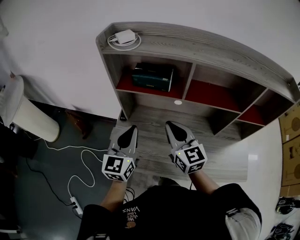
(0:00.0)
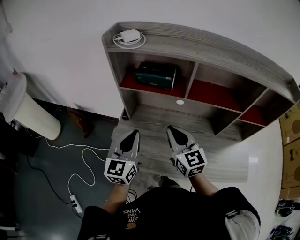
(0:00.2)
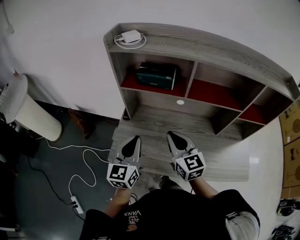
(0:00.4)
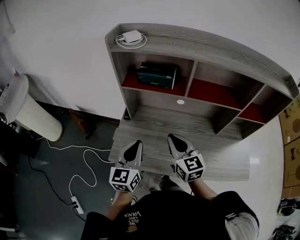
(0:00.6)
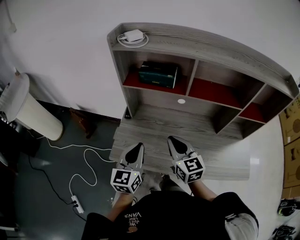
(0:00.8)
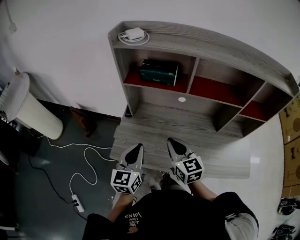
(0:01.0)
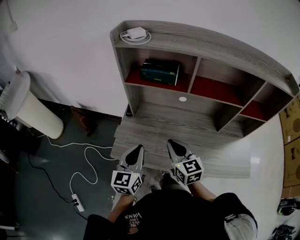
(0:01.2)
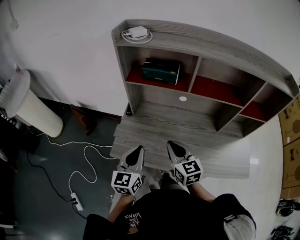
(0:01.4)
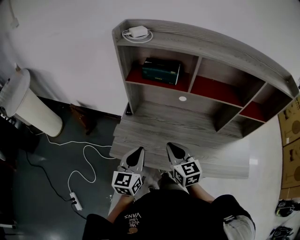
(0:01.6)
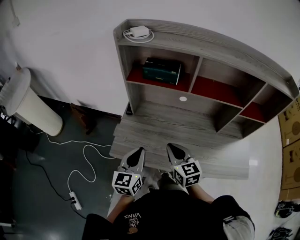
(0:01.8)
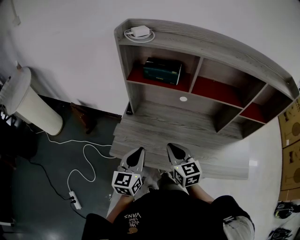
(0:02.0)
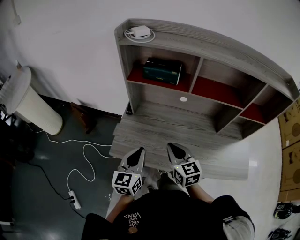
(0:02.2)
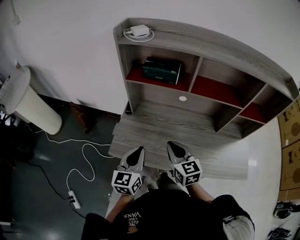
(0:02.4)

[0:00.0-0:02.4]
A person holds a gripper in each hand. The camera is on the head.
0:00.0 to 0:01.2: The two grippers go roughly 10 cm backward and downward.
0:01.2 to 0:02.4: The grippers move only a little.

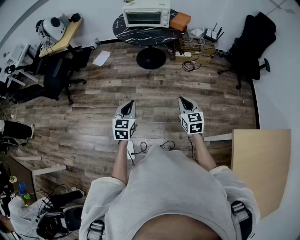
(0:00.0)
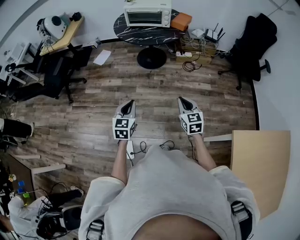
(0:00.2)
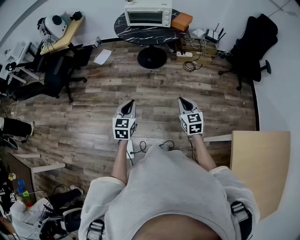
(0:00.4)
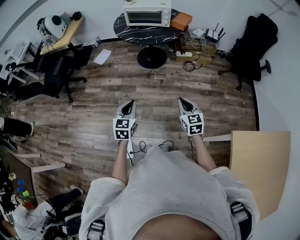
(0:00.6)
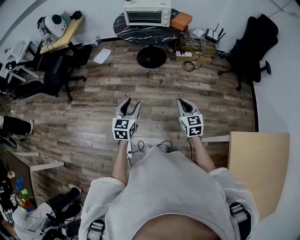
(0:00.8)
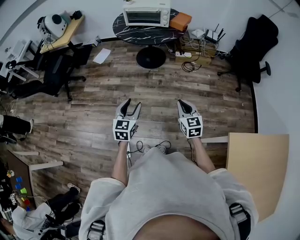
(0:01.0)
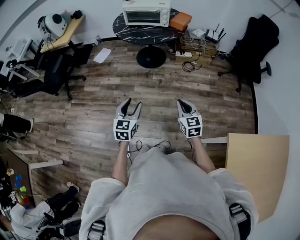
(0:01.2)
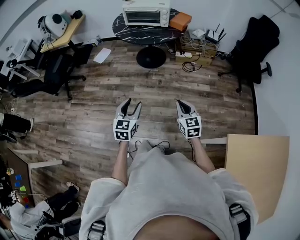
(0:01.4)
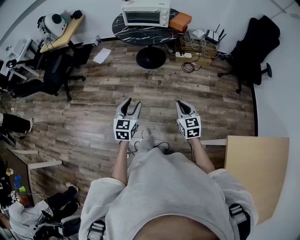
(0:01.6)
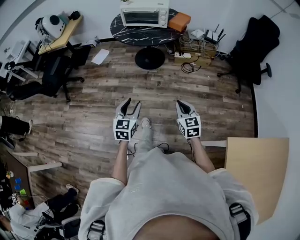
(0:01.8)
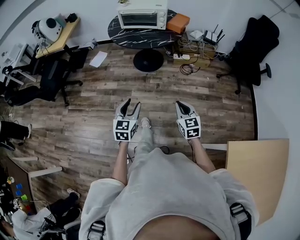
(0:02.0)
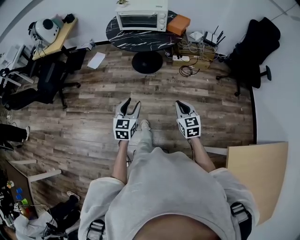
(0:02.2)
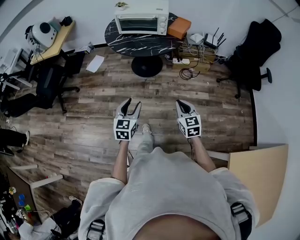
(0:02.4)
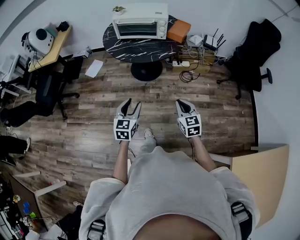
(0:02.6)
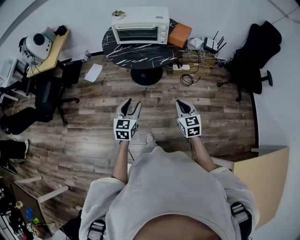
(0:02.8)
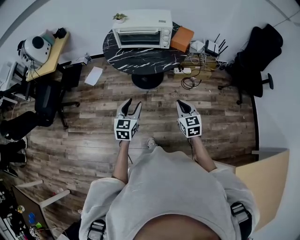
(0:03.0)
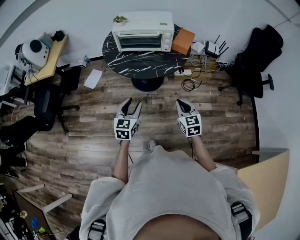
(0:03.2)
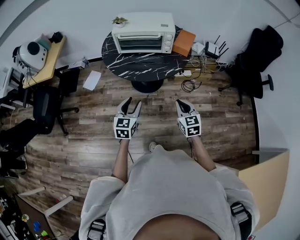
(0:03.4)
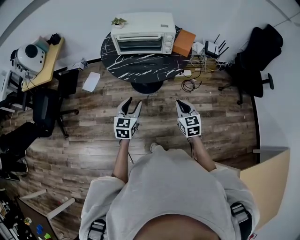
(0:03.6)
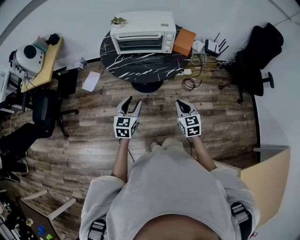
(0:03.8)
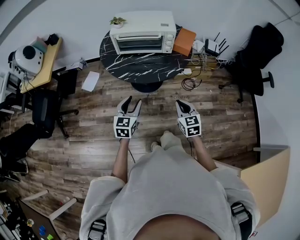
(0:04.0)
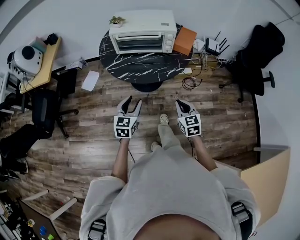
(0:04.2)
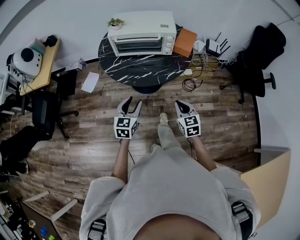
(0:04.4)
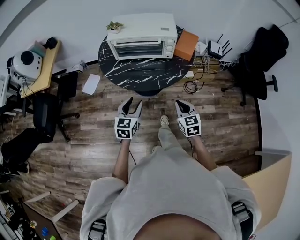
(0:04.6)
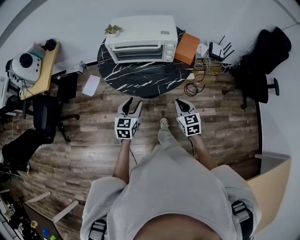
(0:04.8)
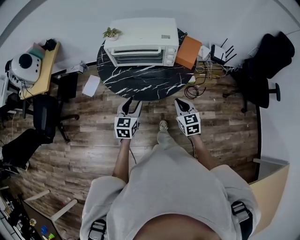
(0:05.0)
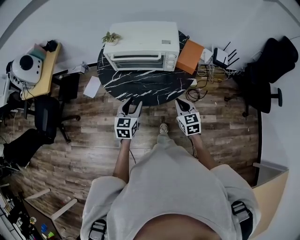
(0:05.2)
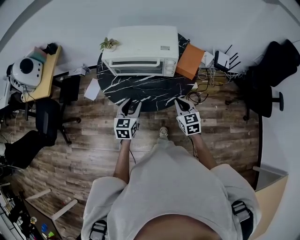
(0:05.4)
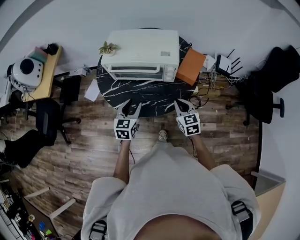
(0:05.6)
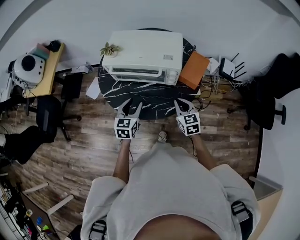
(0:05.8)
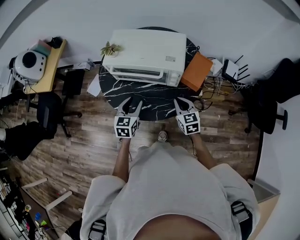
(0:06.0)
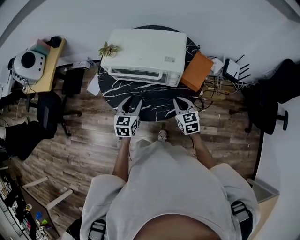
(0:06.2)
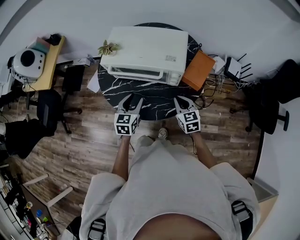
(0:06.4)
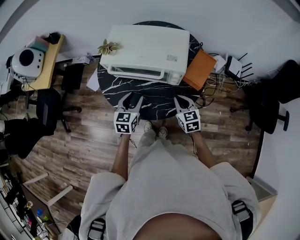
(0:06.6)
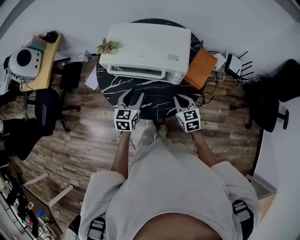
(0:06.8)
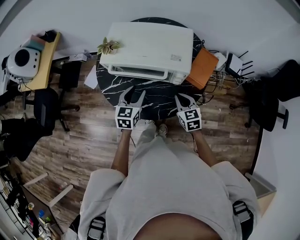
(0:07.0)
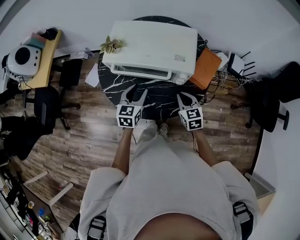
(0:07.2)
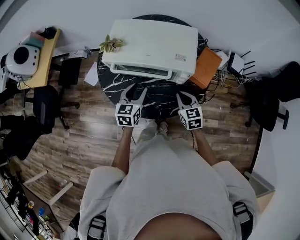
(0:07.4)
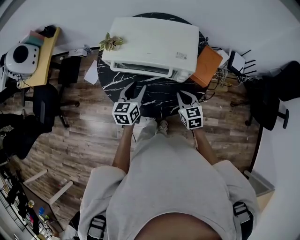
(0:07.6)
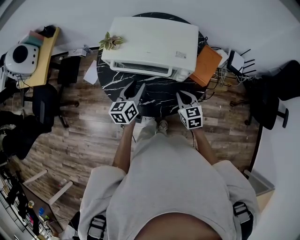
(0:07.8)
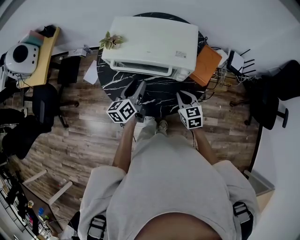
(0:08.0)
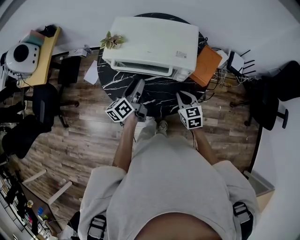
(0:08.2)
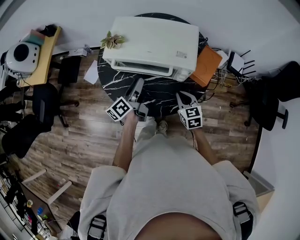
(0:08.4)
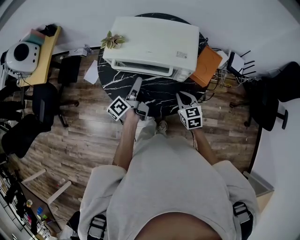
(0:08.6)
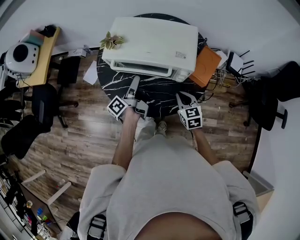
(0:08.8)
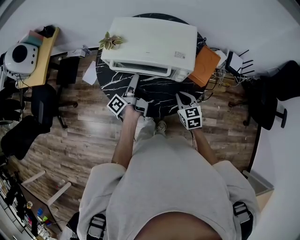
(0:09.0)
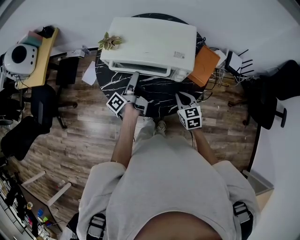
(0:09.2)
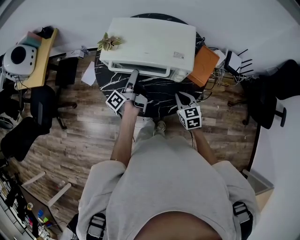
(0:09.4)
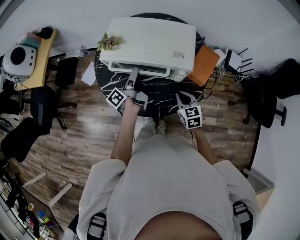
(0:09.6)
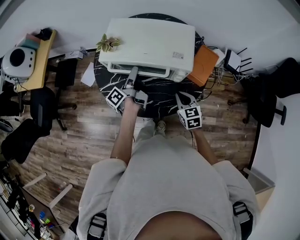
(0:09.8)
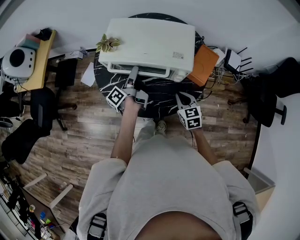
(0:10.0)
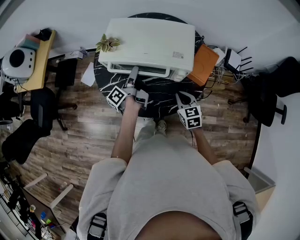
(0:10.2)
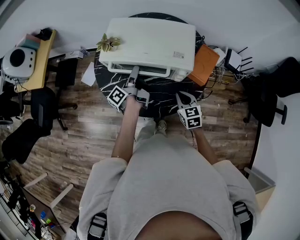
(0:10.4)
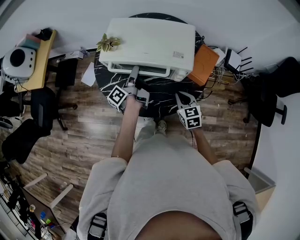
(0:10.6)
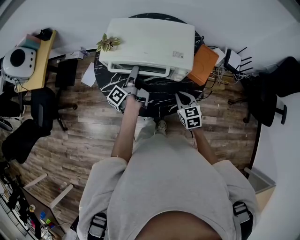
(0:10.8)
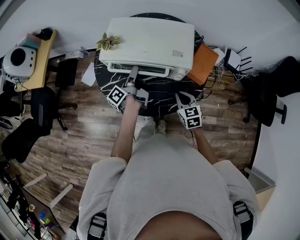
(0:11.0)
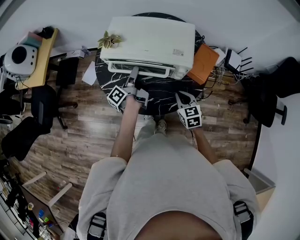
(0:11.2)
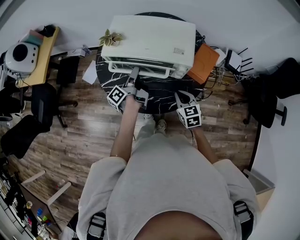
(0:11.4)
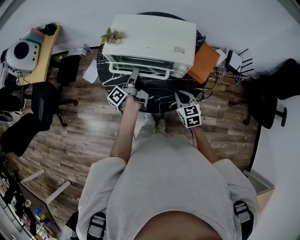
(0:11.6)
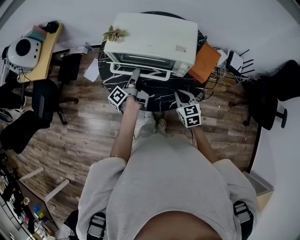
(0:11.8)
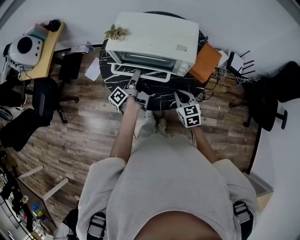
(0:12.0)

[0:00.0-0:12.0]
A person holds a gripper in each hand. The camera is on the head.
0:00.0 to 0:01.6: The left gripper shifts approximately 5 cm to the right, and opens.
0:01.6 to 0:03.0: Both grippers travel together forward, some 30 cm.
0:03.0 to 0:04.4: The two grippers go roughly 10 cm forward.
0:04.4 to 0:06.0: The grippers both shift forward by some 25 cm.
0:06.0 to 0:07.6: The left gripper goes some 5 cm forward; the right gripper ends up roughly 5 cm from where it was.
0:07.6 to 0:09.0: The left gripper rolls counterclockwise, seen from behind, by roughly 70 degrees.
0:09.0 to 0:10.4: The left gripper closes.
0:10.4 to 0:12.0: The left gripper travels backward by some 5 cm.

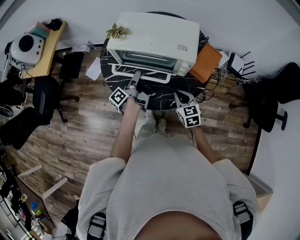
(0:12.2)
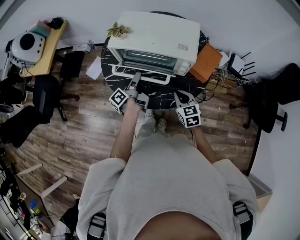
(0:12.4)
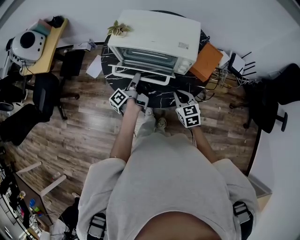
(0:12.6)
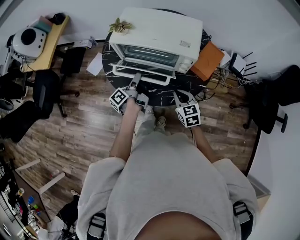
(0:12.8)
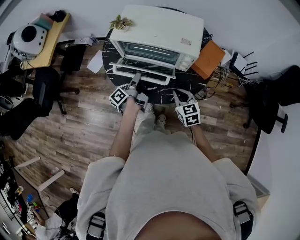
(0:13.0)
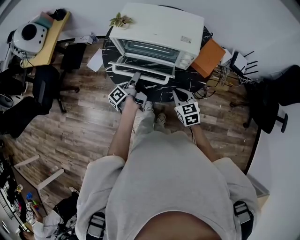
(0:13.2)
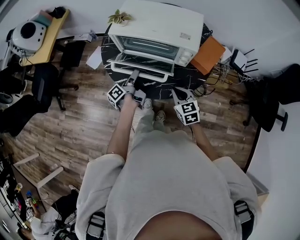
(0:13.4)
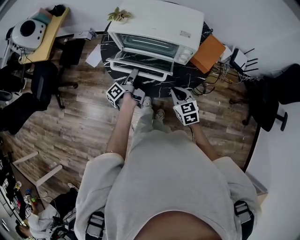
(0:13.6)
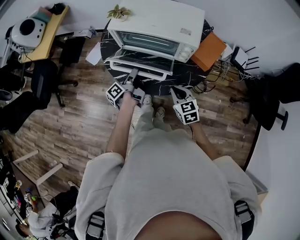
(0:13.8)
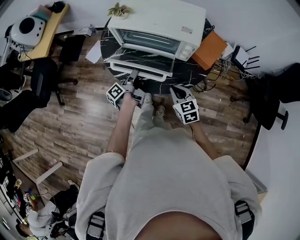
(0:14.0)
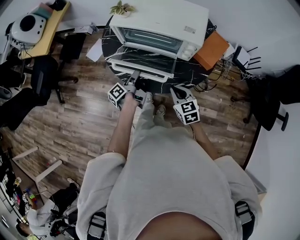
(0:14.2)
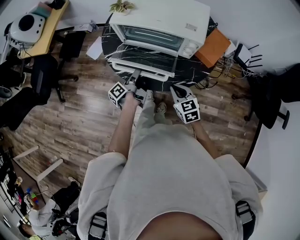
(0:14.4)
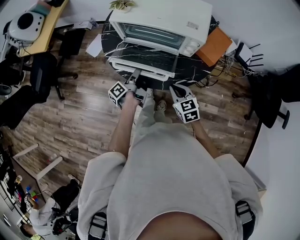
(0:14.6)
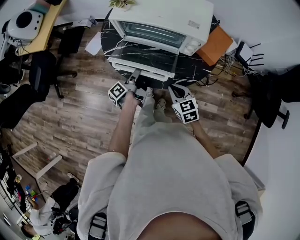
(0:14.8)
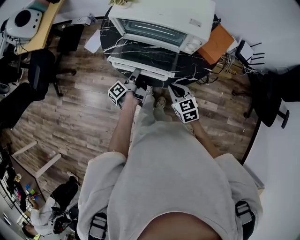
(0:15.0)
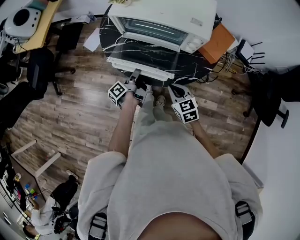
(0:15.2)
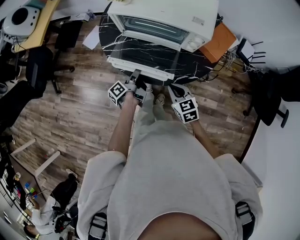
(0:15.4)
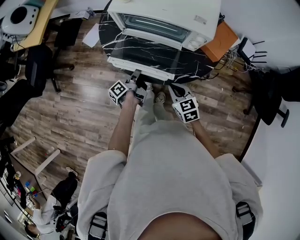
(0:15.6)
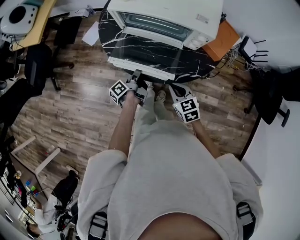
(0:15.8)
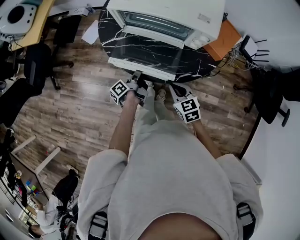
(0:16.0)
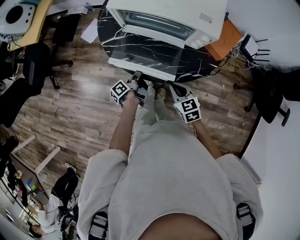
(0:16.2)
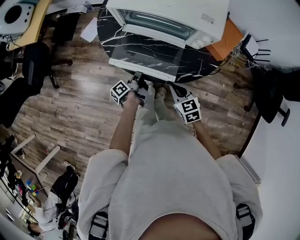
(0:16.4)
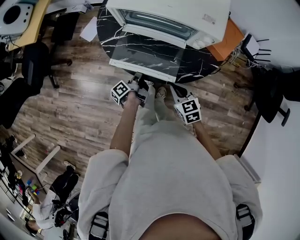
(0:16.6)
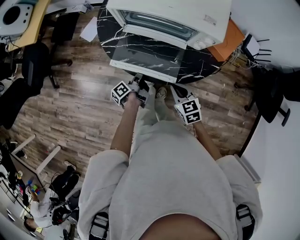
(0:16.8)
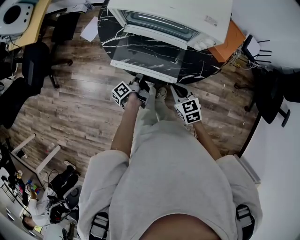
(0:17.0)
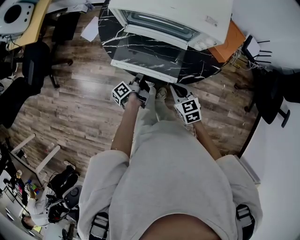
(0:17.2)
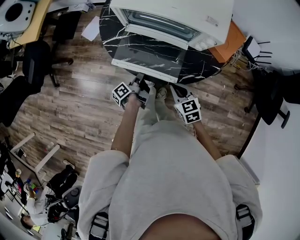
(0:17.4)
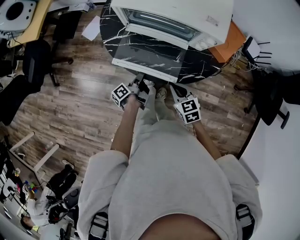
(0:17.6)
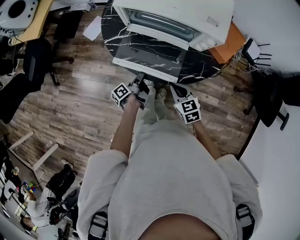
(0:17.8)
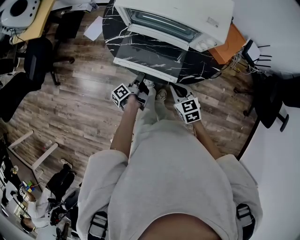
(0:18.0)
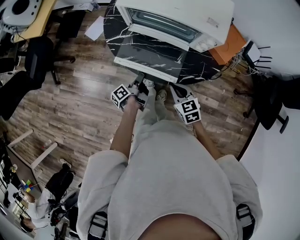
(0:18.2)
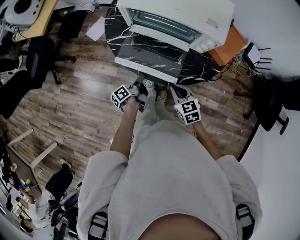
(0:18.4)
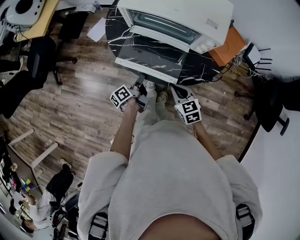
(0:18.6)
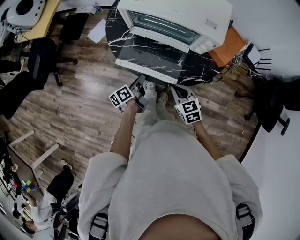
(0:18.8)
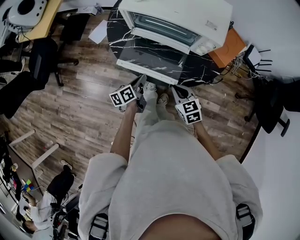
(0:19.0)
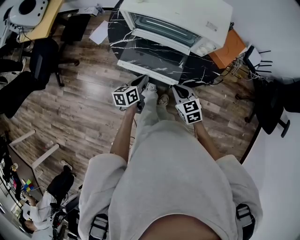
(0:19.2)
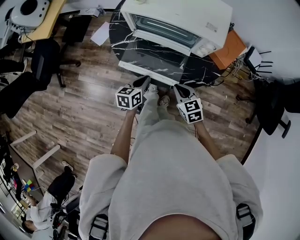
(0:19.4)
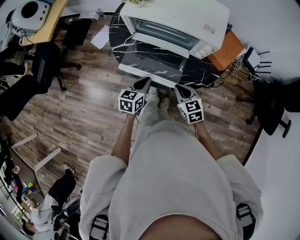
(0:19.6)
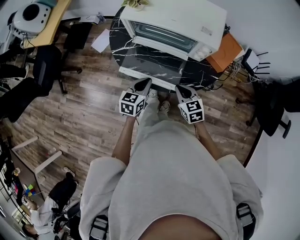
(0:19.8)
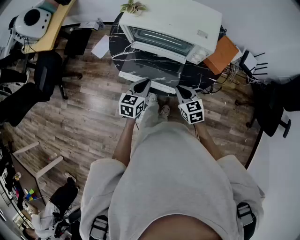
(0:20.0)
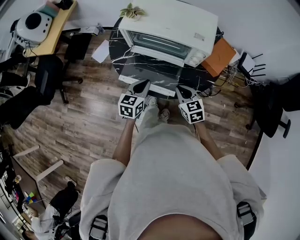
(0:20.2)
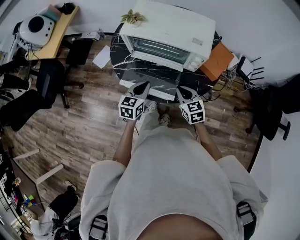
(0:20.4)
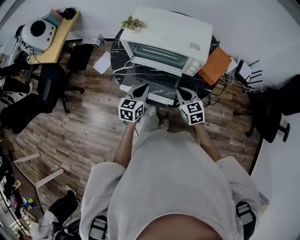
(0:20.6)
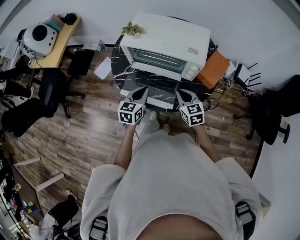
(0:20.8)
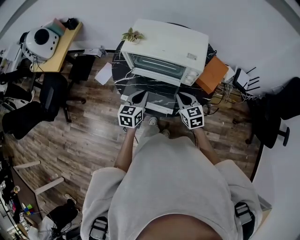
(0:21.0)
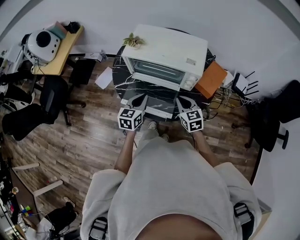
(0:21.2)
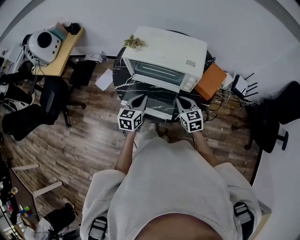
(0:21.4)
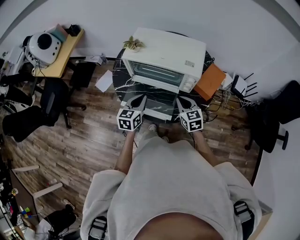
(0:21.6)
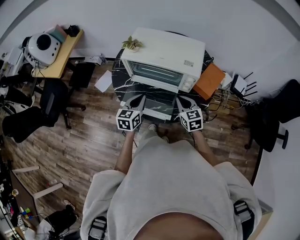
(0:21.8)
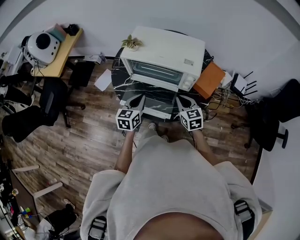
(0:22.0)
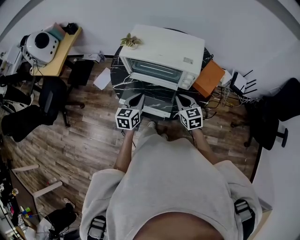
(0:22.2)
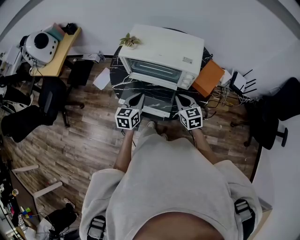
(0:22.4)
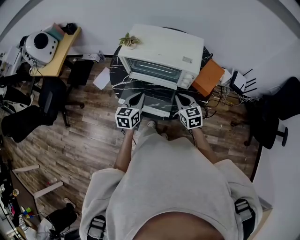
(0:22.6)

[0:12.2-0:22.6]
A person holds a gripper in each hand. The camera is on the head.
0:12.2 to 0:13.6: The right gripper shifts by some 5 cm. The left gripper moves backward, roughly 5 cm.
0:13.6 to 0:15.2: The right gripper ends up roughly 5 cm from where it was. Meanwhile the left gripper is displaced downward by about 5 cm.
0:15.2 to 0:16.6: The left gripper is displaced downward by about 5 cm.
0:16.6 to 0:18.2: The grippers make only small movements.
0:18.2 to 0:19.6: The left gripper shifts about 10 cm upward, and rotates around the line of its fingers by some 80 degrees, clockwise from behind.
0:19.6 to 0:21.2: Both grippers move upward and forward, approximately 10 cm.
0:21.2 to 0:22.6: There are only small adjustments of the grippers.
